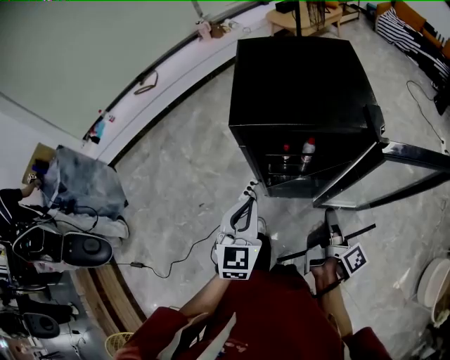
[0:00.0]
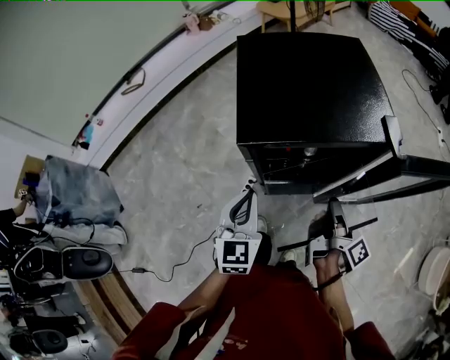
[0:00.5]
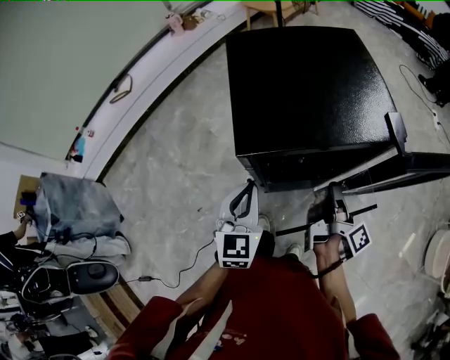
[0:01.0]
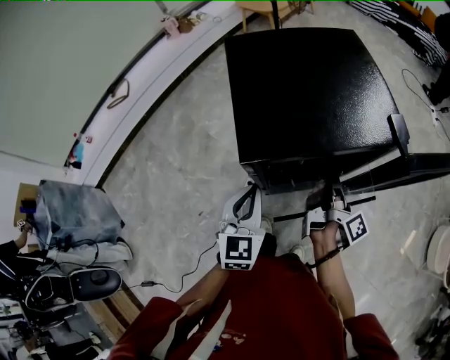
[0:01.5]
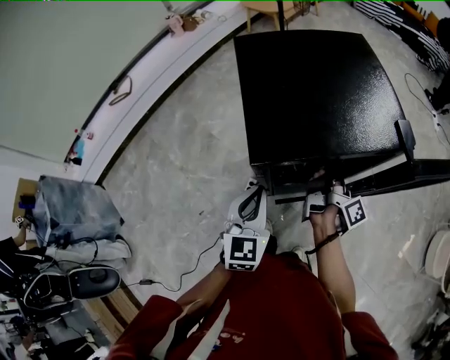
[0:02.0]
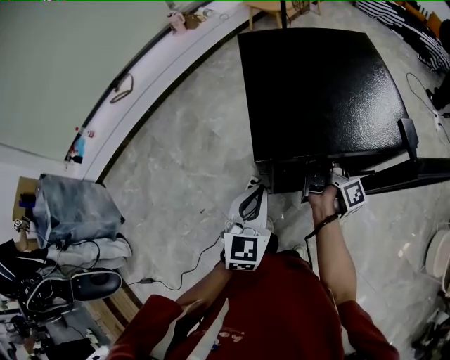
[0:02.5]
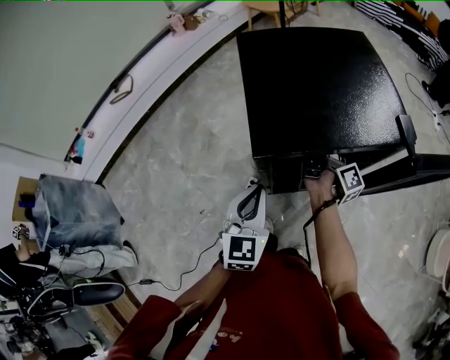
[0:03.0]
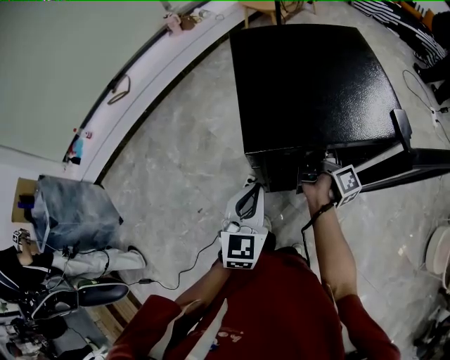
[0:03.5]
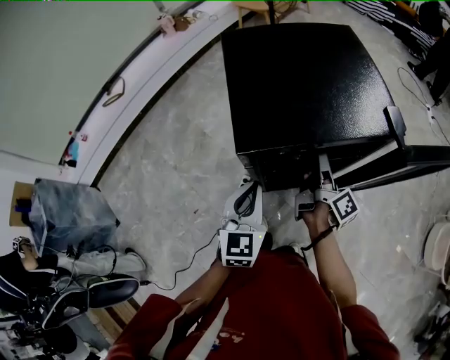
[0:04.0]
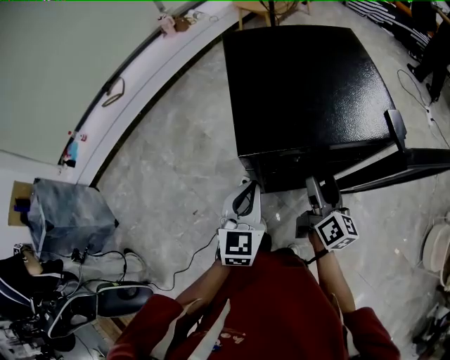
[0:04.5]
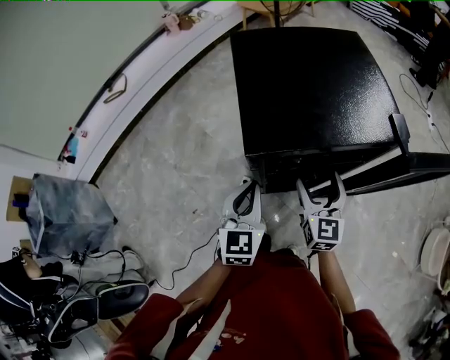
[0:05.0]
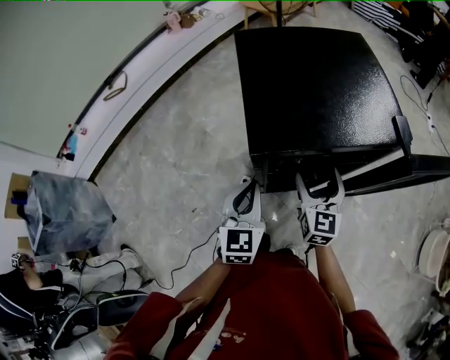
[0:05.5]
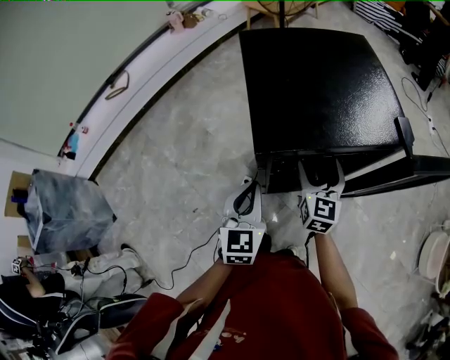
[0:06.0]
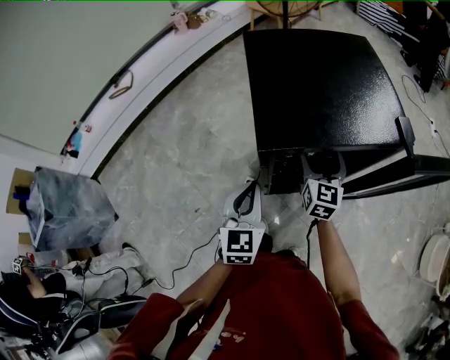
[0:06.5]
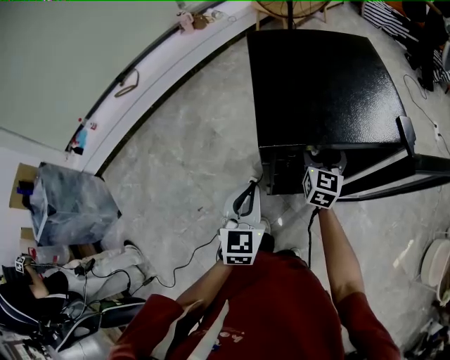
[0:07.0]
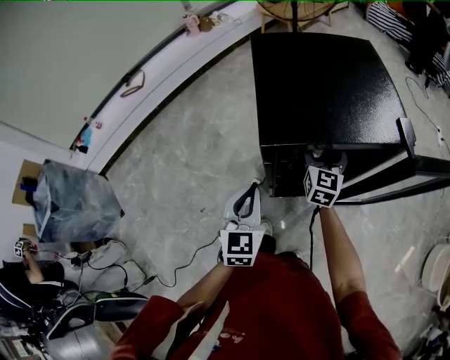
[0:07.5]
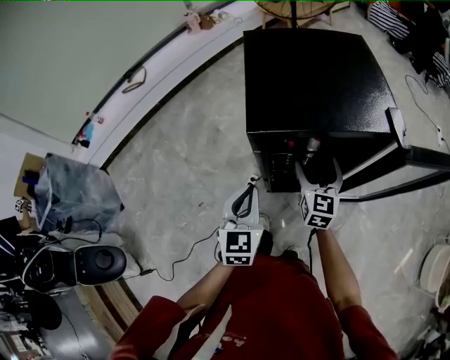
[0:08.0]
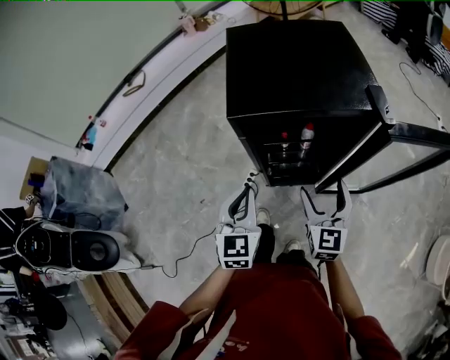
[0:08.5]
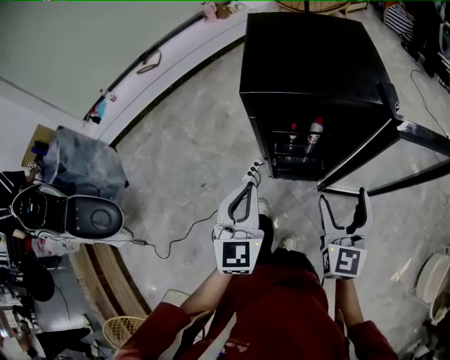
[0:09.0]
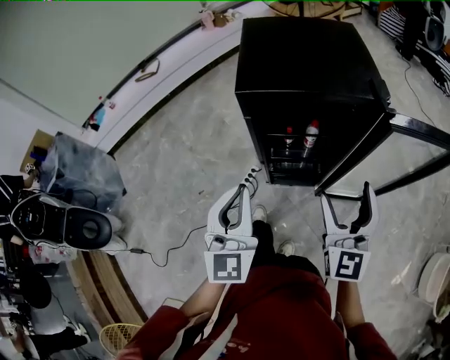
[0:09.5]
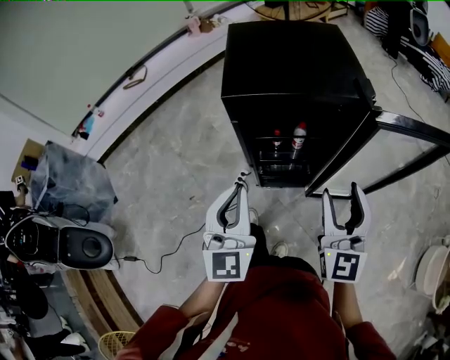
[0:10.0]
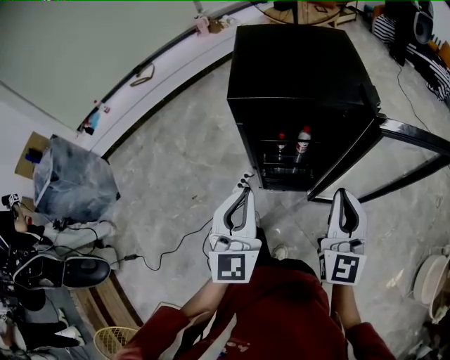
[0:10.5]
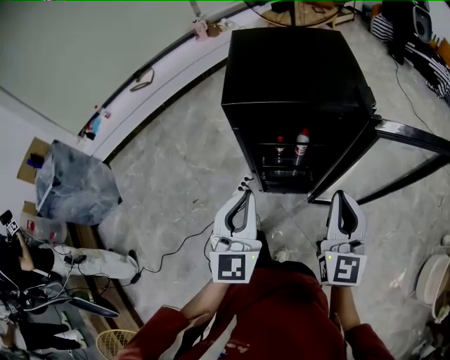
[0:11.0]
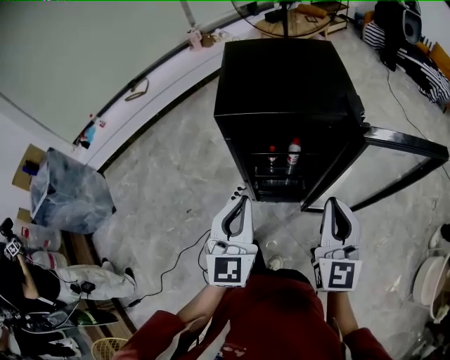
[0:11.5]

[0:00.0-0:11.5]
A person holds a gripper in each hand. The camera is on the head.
0:00.0 to 0:02.0: The right gripper goes roughly 20 cm forward and to the left. The left gripper moves forward and to the left, some 10 cm.
0:02.0 to 0:04.0: The right gripper reaches approximately 5 cm forward, then returns, and opens its fingers.
0:04.0 to 0:06.0: The right gripper twists roughly 80 degrees counterclockwise, seen from behind.
0:06.0 to 0:07.5: The right gripper moves forward, approximately 5 cm.
0:07.5 to 0:09.5: The left gripper moves backward and upward, about 20 cm, while the right gripper goes some 30 cm backward and upward.
0:09.5 to 0:11.5: The left gripper travels to the right by about 5 cm; the right gripper closes.

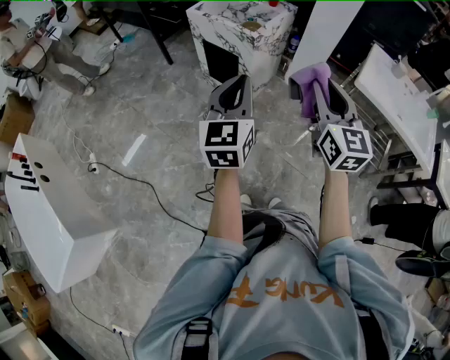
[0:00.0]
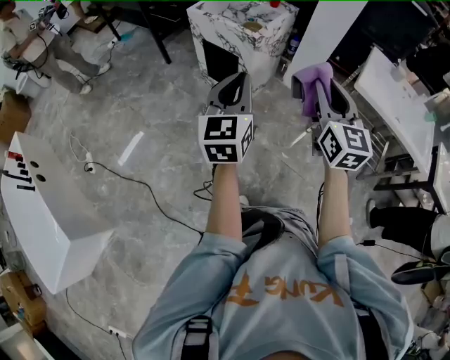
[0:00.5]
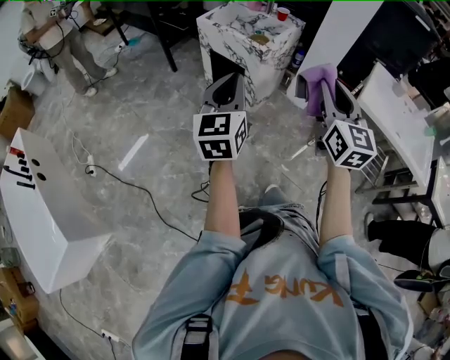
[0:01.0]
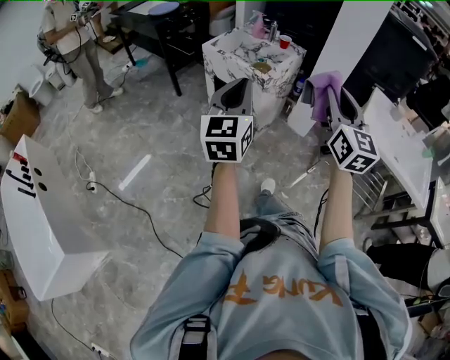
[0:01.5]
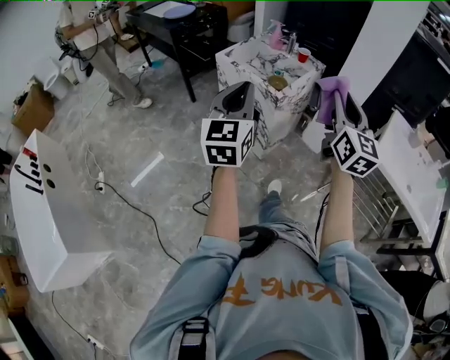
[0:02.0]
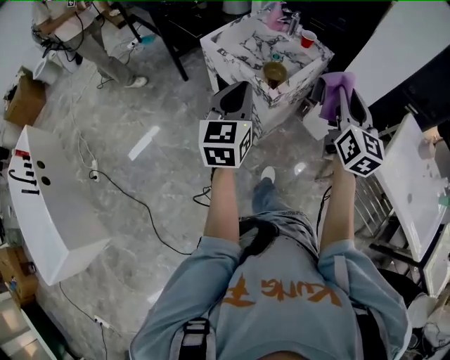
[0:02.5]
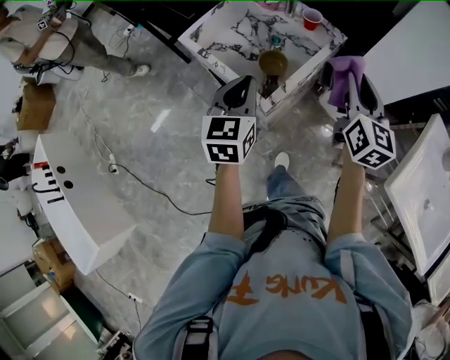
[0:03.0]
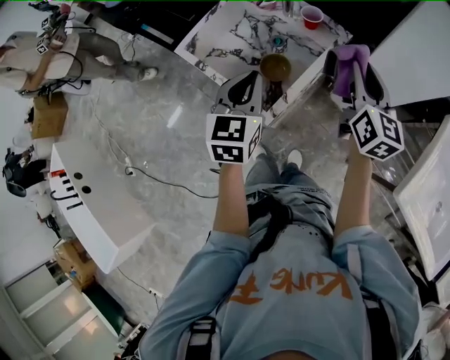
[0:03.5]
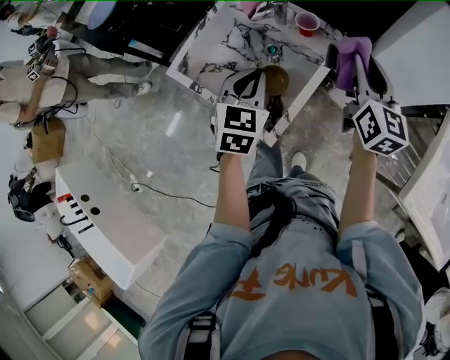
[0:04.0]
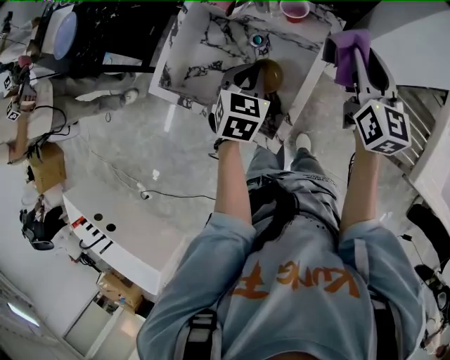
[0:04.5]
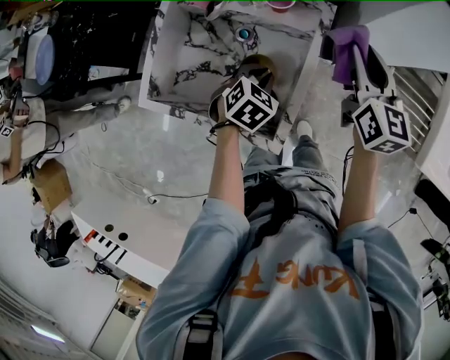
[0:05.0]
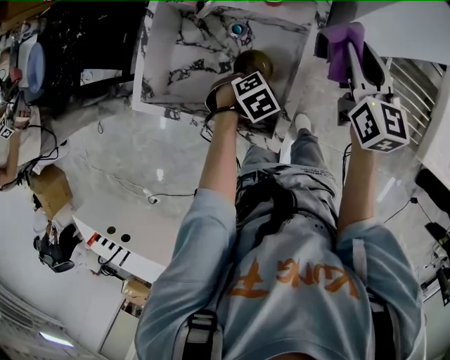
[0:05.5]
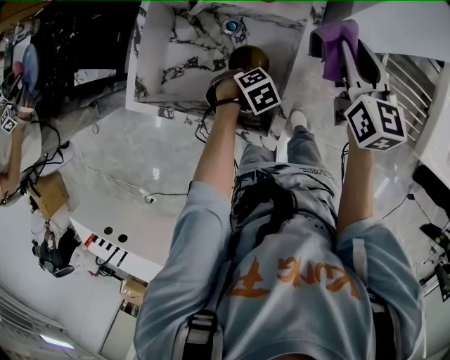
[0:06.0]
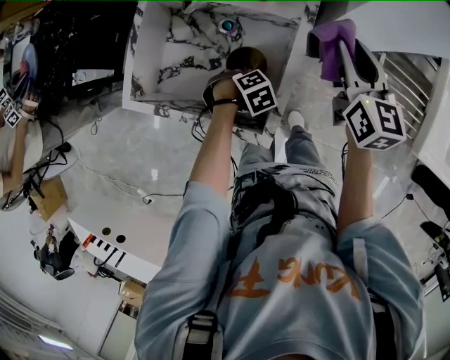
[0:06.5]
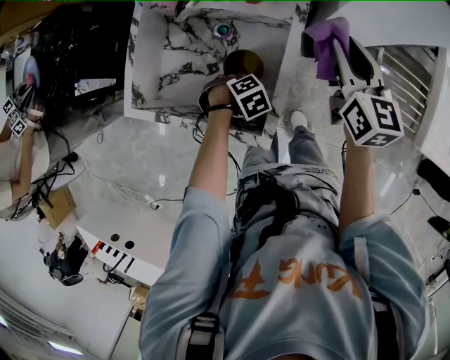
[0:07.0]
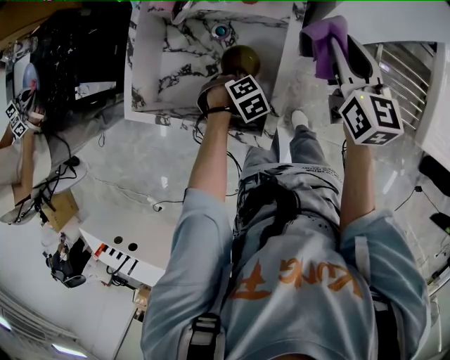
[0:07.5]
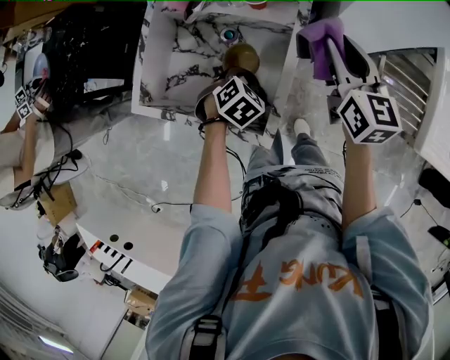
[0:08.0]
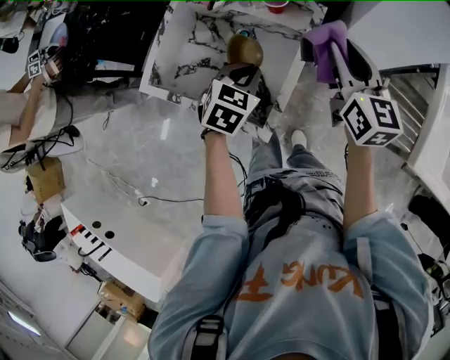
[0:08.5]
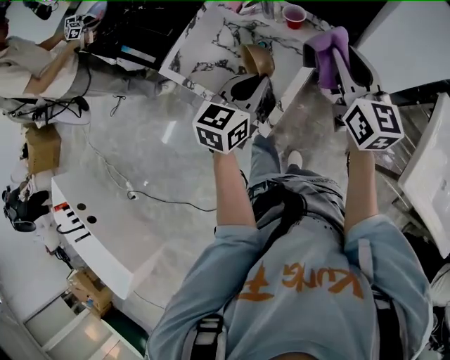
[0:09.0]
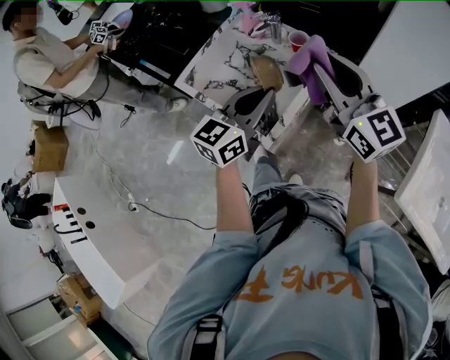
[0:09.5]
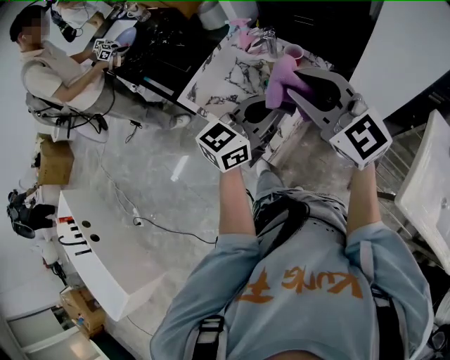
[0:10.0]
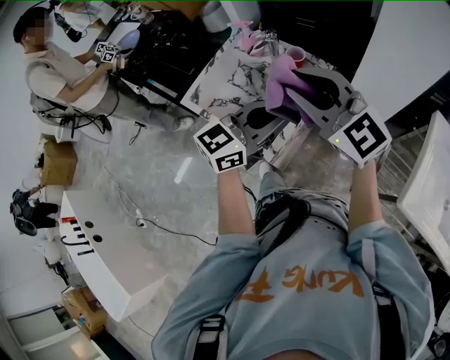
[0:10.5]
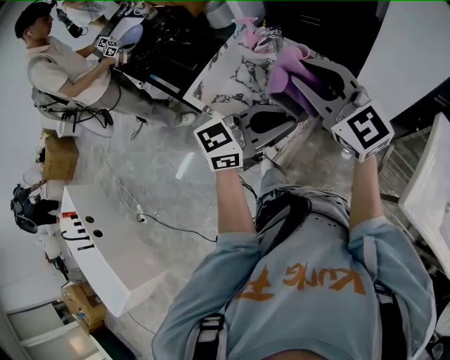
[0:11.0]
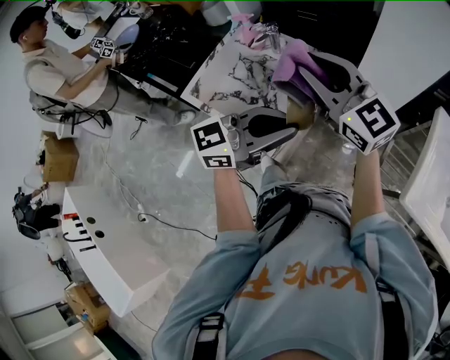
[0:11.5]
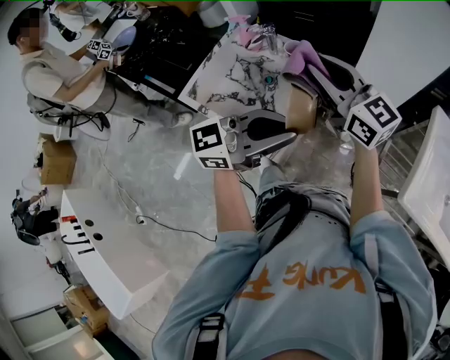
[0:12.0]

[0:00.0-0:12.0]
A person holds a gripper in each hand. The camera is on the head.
0:00.0 to 0:02.0: Both grippers move forward, some 20 cm.
0:02.0 to 0:04.0: The two grippers travel together, forward, roughly 50 cm. The left gripper goes approximately 20 cm downward, and points its fingers some 30 degrees further downward.
0:04.0 to 0:06.0: The left gripper moves downward, about 30 cm, and points its fingers about 50 degrees further downward, while the right gripper goes roughly 10 cm downward.
0:06.0 to 0:08.0: The left gripper heads upward, covering approximately 10 cm, and rotates roughly 20 degrees.
0:08.0 to 0:10.0: The right gripper travels upward by about 20 cm, and swivels roughly 60 degrees; the left gripper travels upward by roughly 30 cm, and tips its fingers upward by approximately 70 degrees.
0:10.0 to 0:12.0: The right gripper moves forward, about 5 cm, and swivels about 30 degrees. Meanwhile the left gripper moves backward, roughly 10 cm, and changes its angle by approximately 30 degrees.

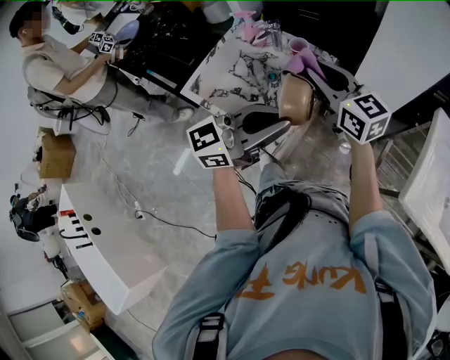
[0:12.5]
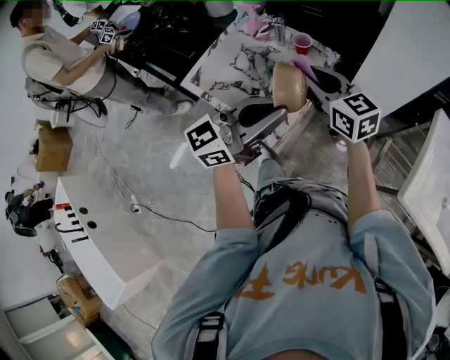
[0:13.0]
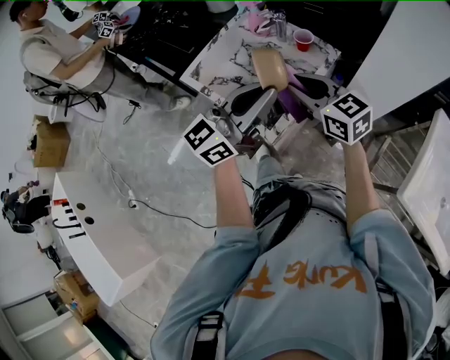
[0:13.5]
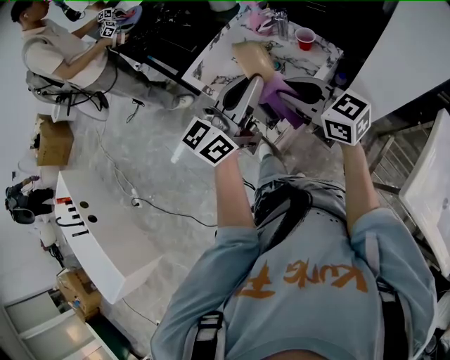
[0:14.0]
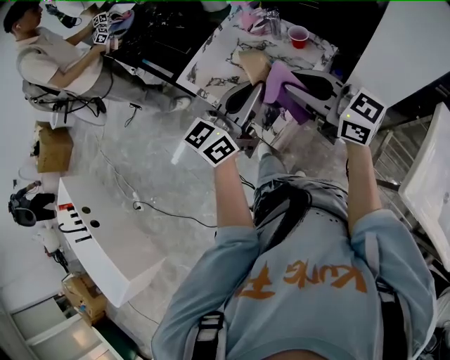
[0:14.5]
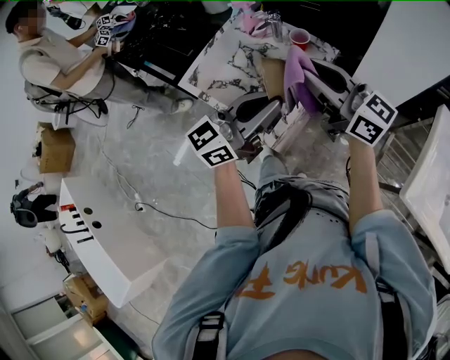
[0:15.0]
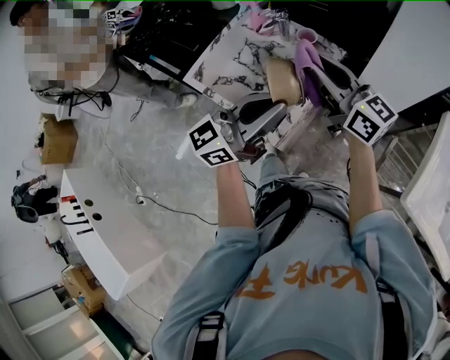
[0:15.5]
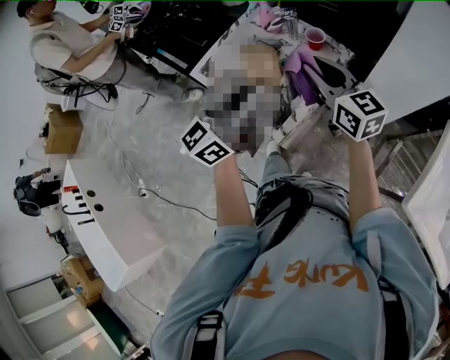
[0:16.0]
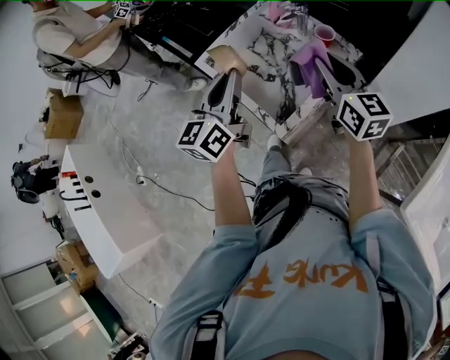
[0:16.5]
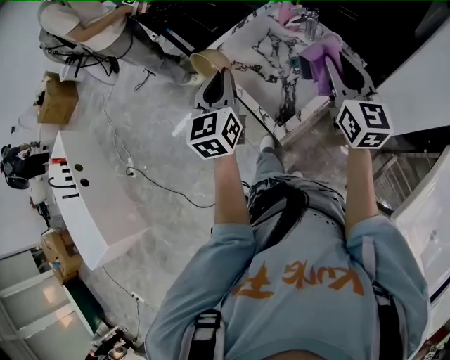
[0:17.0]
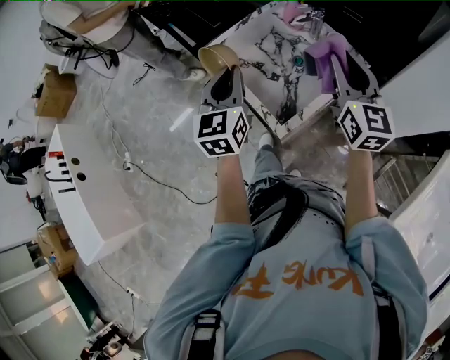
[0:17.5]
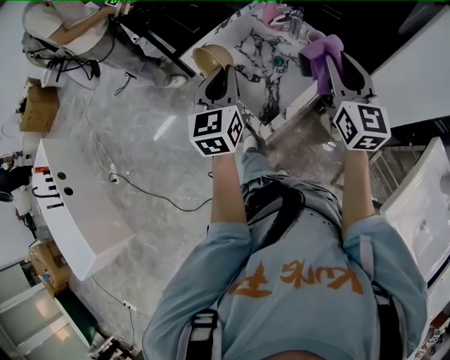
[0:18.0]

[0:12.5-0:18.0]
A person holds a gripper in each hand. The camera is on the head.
0:12.5 to 0:14.5: The left gripper moves approximately 10 cm, and rotates approximately 30 degrees. The right gripper ends up some 10 cm from where it was, and rotates approximately 30 degrees.
0:14.5 to 0:16.0: The right gripper heads forward, covering roughly 5 cm, and rotates about 20 degrees.
0:16.0 to 0:18.0: The right gripper shifts by roughly 5 cm, and rotates some 20 degrees. The left gripper moves to the left, downward and forward, roughly 15 cm, and turns by about 50 degrees.
